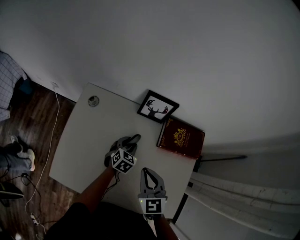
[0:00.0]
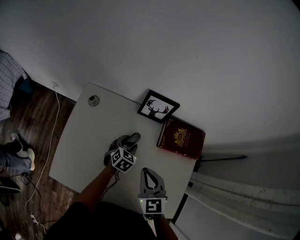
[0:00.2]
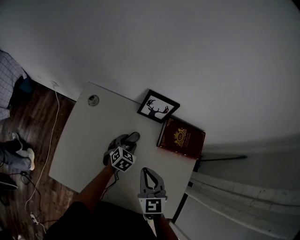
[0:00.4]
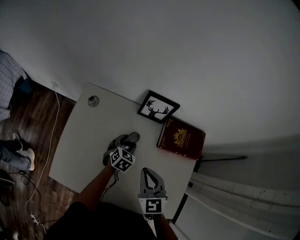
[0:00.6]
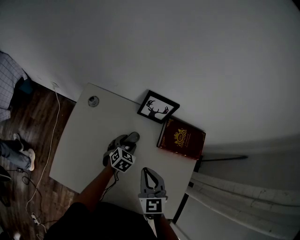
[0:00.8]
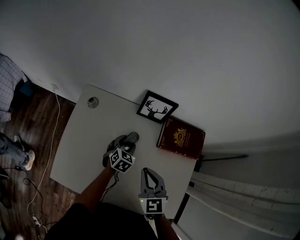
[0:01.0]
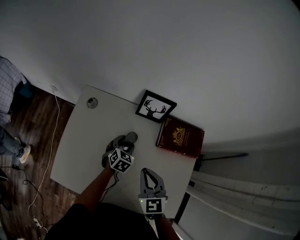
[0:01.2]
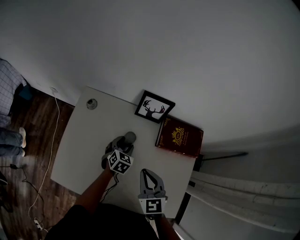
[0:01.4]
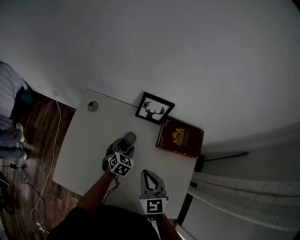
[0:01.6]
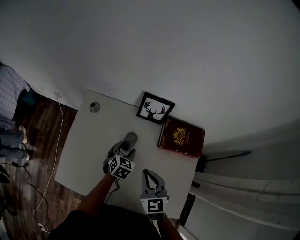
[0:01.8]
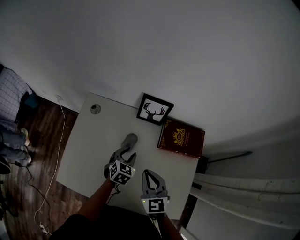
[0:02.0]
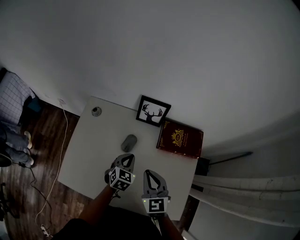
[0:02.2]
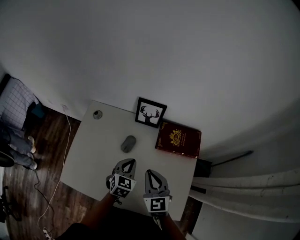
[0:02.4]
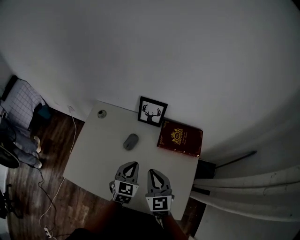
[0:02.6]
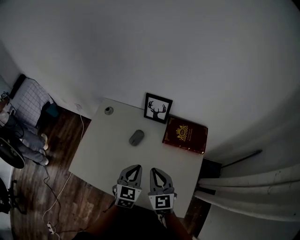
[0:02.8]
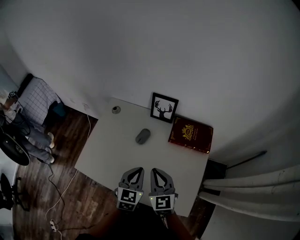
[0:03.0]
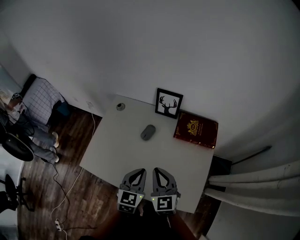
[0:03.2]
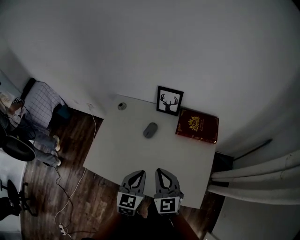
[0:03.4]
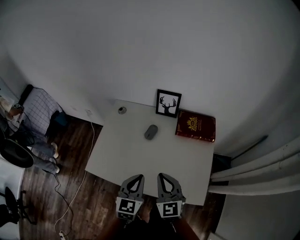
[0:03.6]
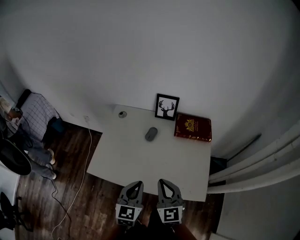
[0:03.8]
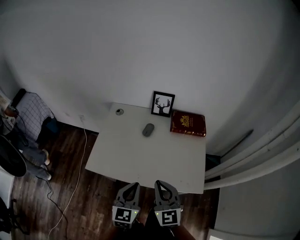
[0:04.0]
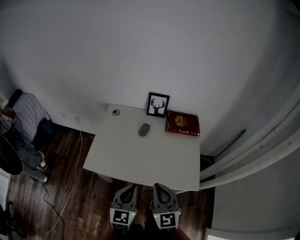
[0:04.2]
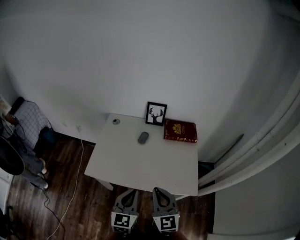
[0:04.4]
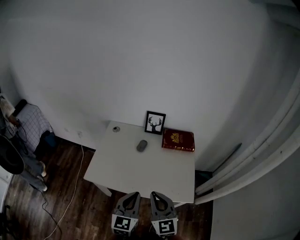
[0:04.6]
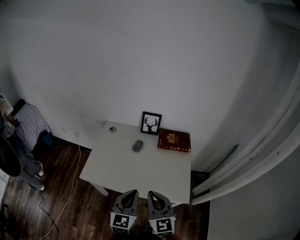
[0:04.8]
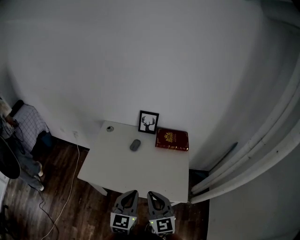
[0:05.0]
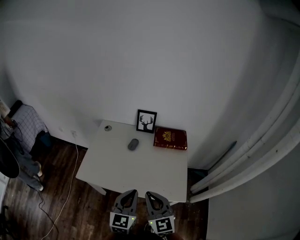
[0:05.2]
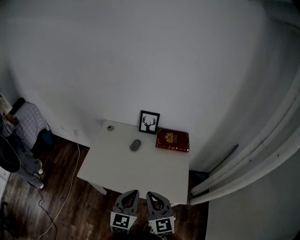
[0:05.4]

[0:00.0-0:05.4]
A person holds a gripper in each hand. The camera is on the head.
0:00.0 to 0:01.4: The left gripper opens its fingers.
0:01.4 to 0:02.8: The left gripper moves backward and upward, about 25 cm, turns by about 20 degrees, and closes its fingers; the right gripper is displaced backward by roughly 5 cm.
0:02.8 to 0:04.0: Both grippers move backward and to the left, about 25 cm.
0:04.0 to 0:05.4: The right gripper shifts by roughly 10 cm; the left gripper heads to the right and upward, covering about 10 cm.

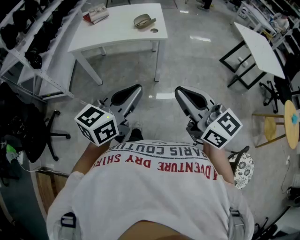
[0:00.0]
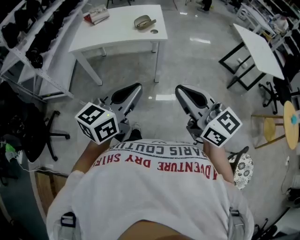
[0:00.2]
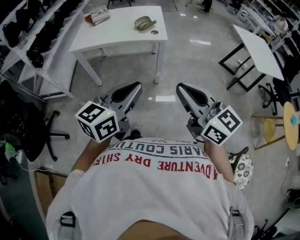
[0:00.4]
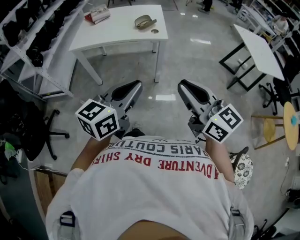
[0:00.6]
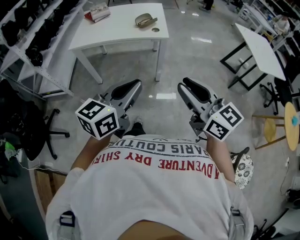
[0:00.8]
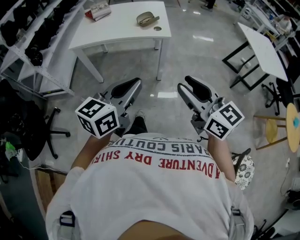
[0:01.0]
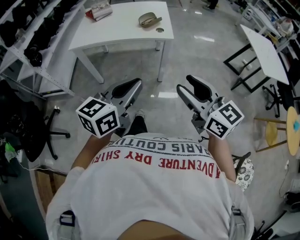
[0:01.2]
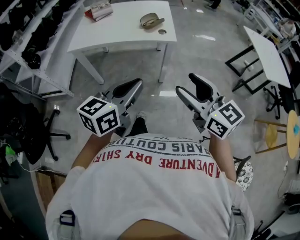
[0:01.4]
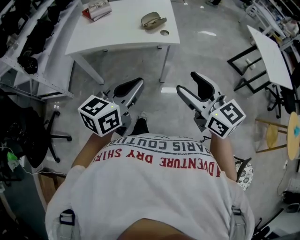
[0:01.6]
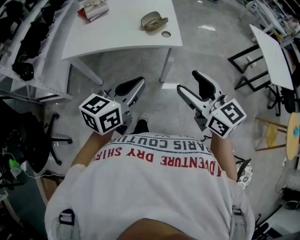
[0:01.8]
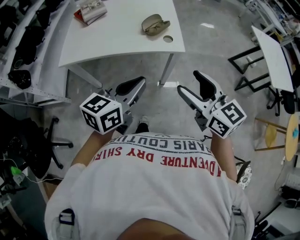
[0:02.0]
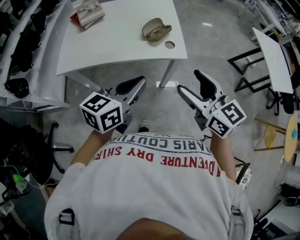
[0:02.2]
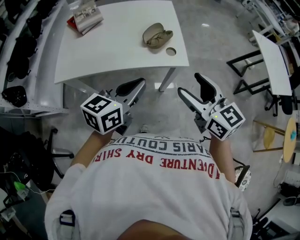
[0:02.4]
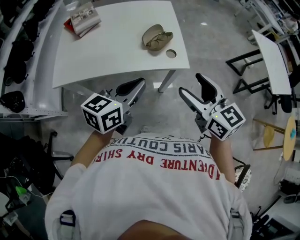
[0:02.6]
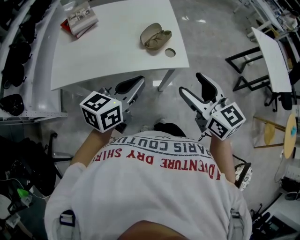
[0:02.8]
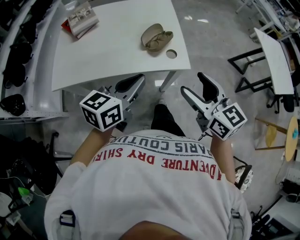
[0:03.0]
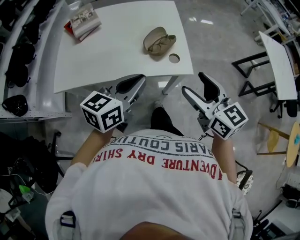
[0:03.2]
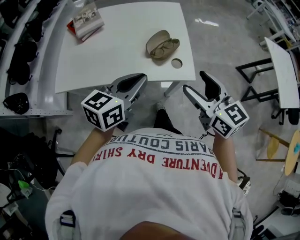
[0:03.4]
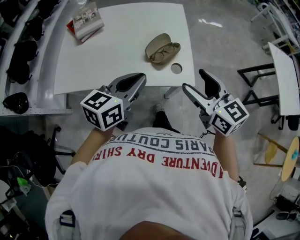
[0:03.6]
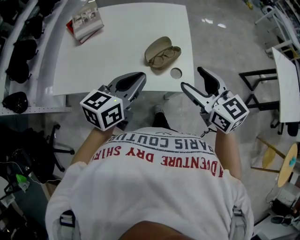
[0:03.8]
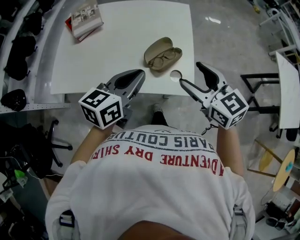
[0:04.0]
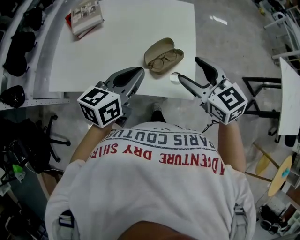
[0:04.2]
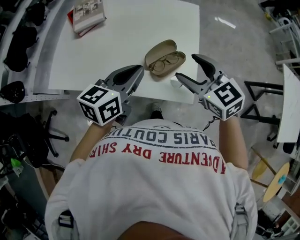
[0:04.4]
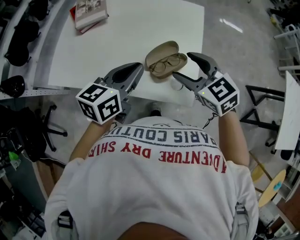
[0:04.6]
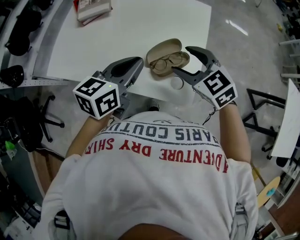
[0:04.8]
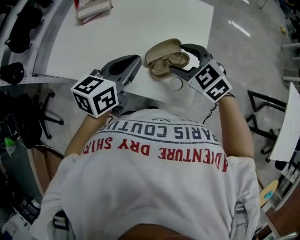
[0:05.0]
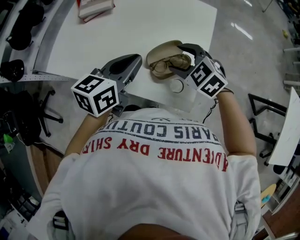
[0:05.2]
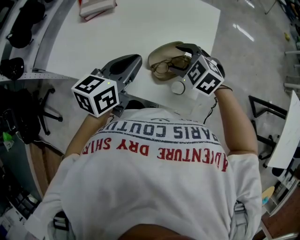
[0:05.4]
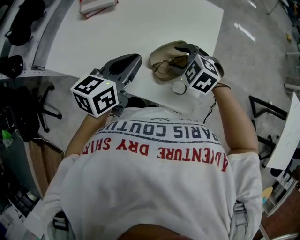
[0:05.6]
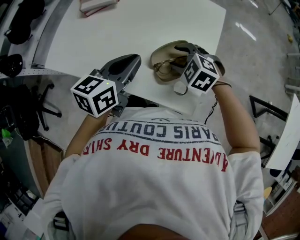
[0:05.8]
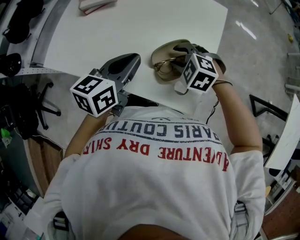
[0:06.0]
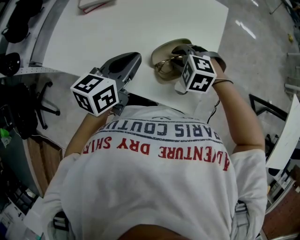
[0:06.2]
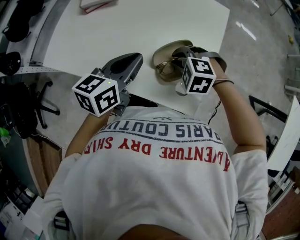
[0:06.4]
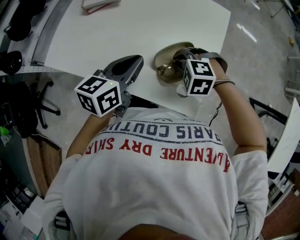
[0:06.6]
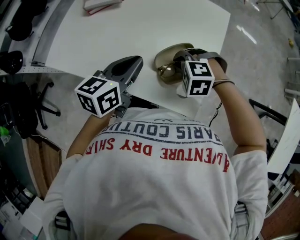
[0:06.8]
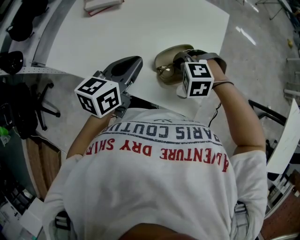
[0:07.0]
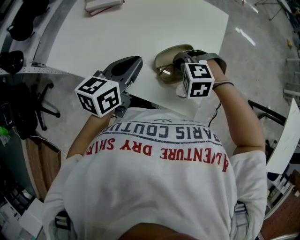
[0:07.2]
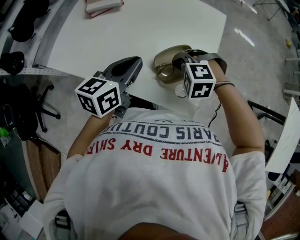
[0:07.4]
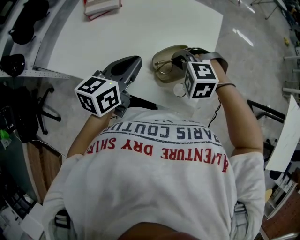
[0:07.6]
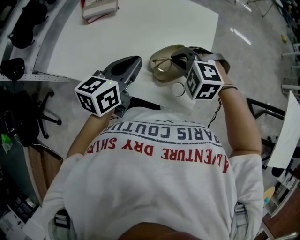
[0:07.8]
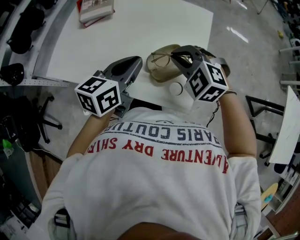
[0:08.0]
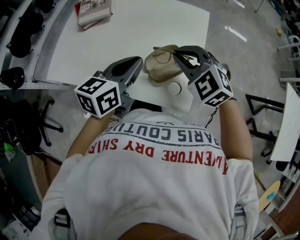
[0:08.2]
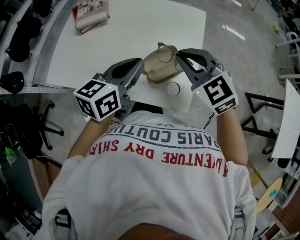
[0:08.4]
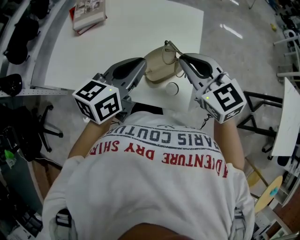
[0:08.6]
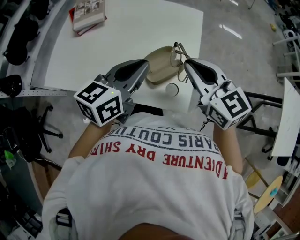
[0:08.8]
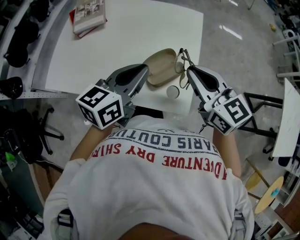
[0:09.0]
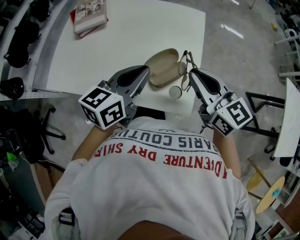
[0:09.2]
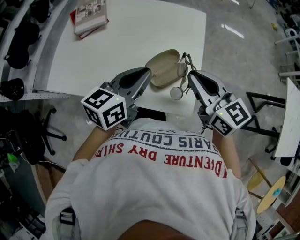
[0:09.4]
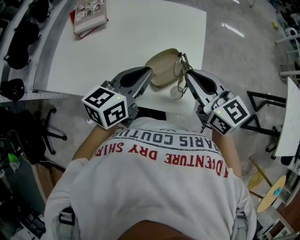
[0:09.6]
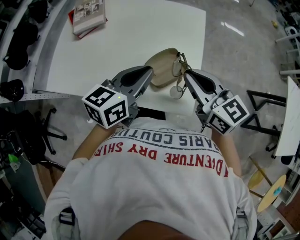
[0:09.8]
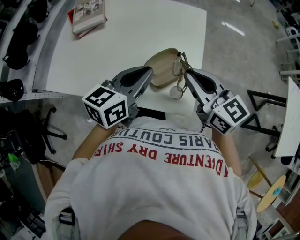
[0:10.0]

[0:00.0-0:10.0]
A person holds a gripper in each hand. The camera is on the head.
0:00.0 to 0:01.4: Both grippers move forward, about 10 cm. The right gripper opens its fingers.
0:01.4 to 0:02.8: The grippers both shift forward by some 30 cm.
0:02.8 to 0:04.2: The grippers both shift forward by some 20 cm. The right gripper turns by approximately 20 degrees.
0:04.2 to 0:05.8: The right gripper heads downward and forward, covering roughly 20 cm, and tips its fingers downward by approximately 30 degrees; the left gripper shifts about 10 cm forward and downward.
0:05.8 to 0:07.2: The right gripper swivels roughly 30 degrees, and closes.
0:07.2 to 0:08.6: The right gripper goes approximately 20 cm upward, and points its fingers approximately 50 degrees further upward. Meanwhile the left gripper travels upward and to the right by approximately 10 cm.
0:08.6 to 0:10.0: The right gripper turns by roughly 20 degrees.

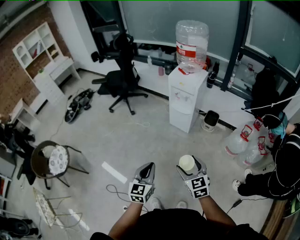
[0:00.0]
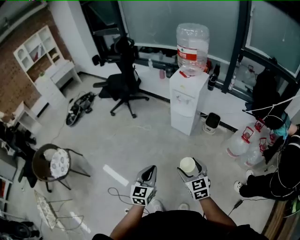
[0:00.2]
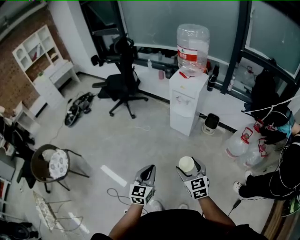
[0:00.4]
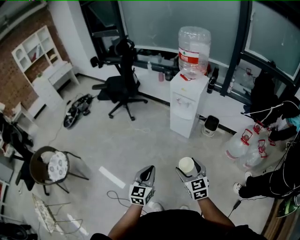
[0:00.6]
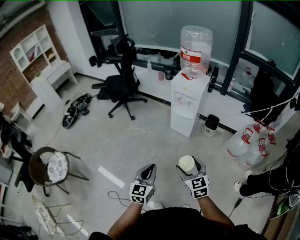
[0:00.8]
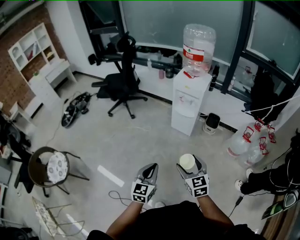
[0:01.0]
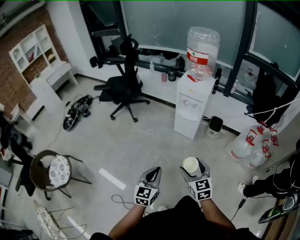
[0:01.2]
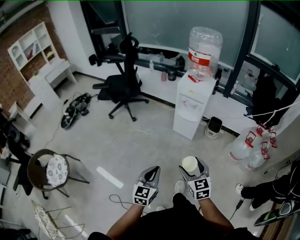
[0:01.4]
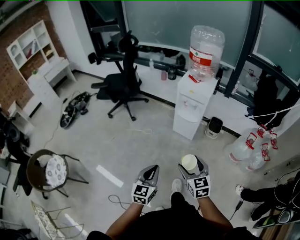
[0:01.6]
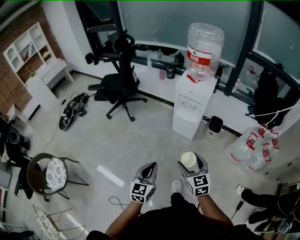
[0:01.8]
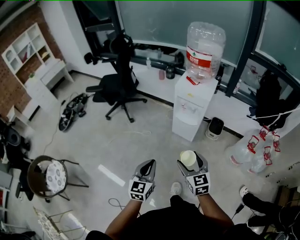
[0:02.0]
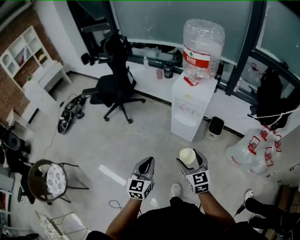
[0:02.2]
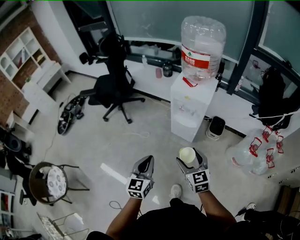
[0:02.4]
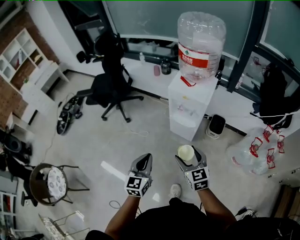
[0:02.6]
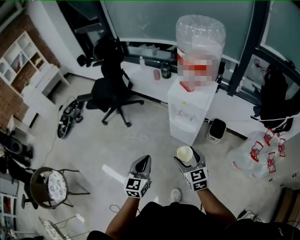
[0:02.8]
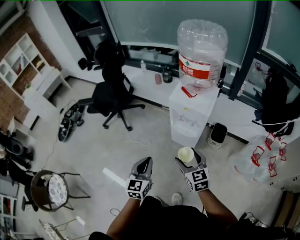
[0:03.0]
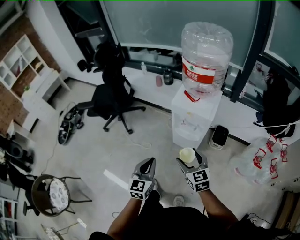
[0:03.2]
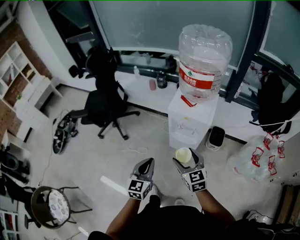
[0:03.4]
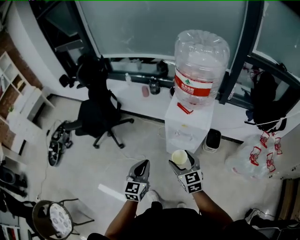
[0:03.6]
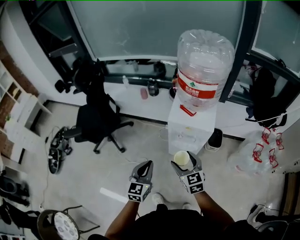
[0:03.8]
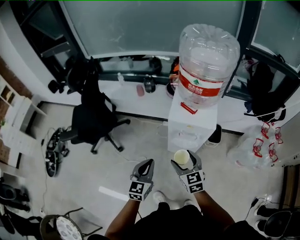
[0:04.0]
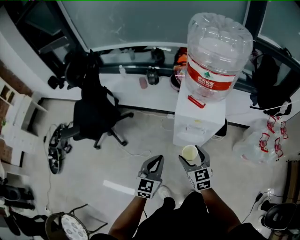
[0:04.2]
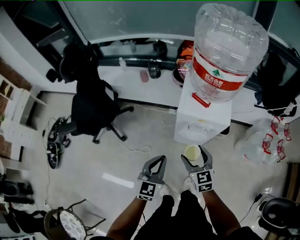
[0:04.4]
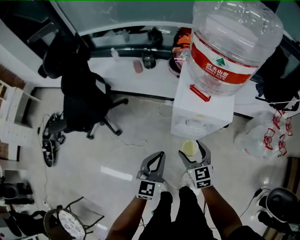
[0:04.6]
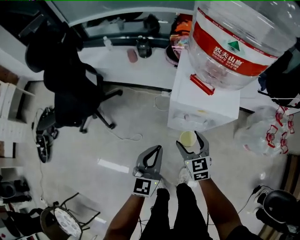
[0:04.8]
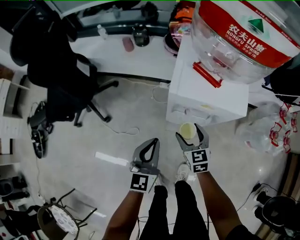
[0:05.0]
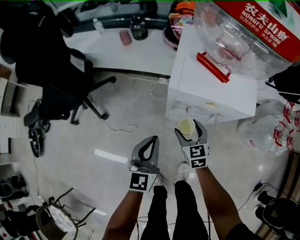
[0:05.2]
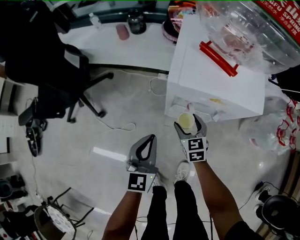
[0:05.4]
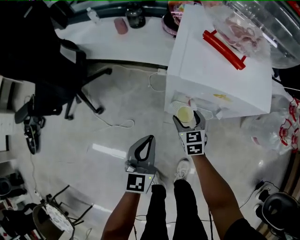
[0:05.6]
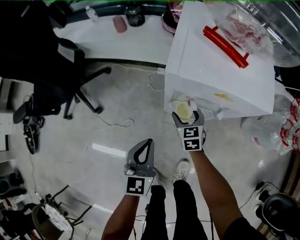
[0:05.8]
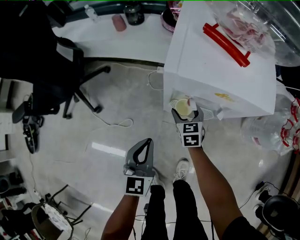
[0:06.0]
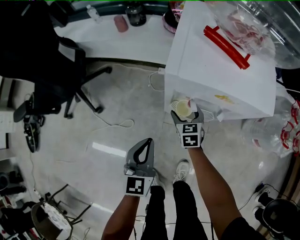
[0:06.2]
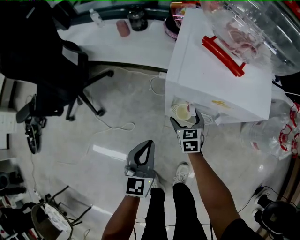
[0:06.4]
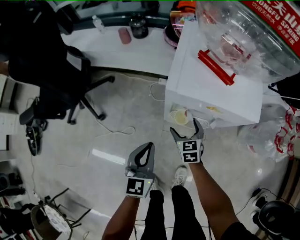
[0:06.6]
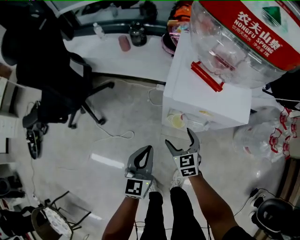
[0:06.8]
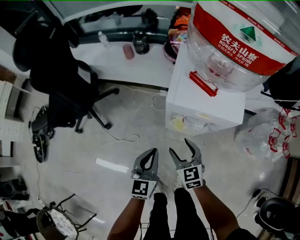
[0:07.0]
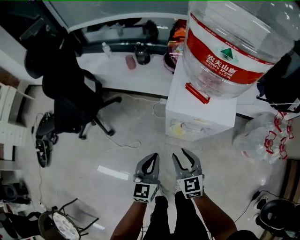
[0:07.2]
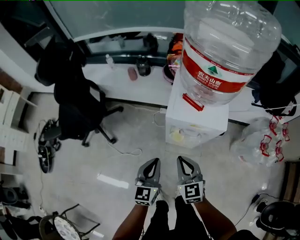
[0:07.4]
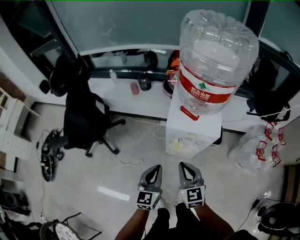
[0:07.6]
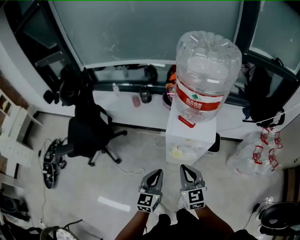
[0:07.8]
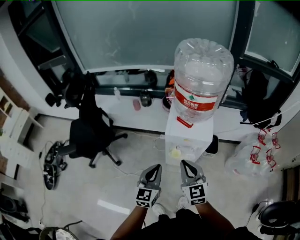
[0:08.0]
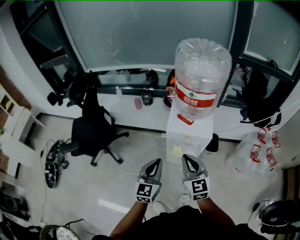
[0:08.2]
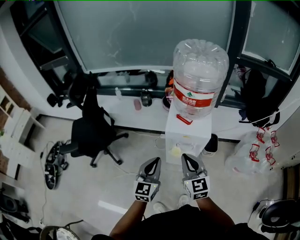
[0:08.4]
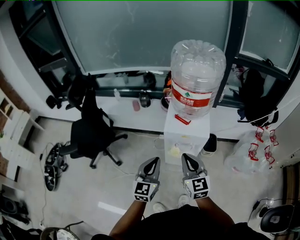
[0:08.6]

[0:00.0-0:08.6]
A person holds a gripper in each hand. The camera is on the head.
0:00.0 to 0:01.4: Both grippers travel together to the left and forward, roughly 10 cm.
0:01.4 to 0:02.8: Both grippers move forward, about 25 cm.
0:02.8 to 0:04.4: The right gripper goes approximately 20 cm forward and to the left. Meanwhile the left gripper is displaced forward by about 20 cm, and swivels approximately 20 degrees.
0:04.4 to 0:05.8: The left gripper travels downward by approximately 20 cm. The right gripper is displaced downward and forward by about 35 cm.
0:05.8 to 0:07.2: The left gripper travels upward by roughly 10 cm. Meanwhile the right gripper heads upward and backward, covering some 25 cm, and closes up.
0:07.2 to 0:08.6: Both grippers move upward, approximately 20 cm.
